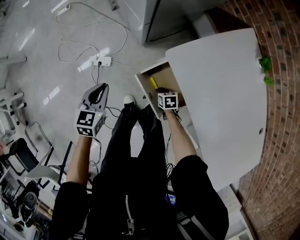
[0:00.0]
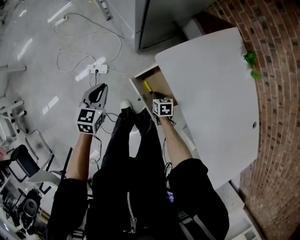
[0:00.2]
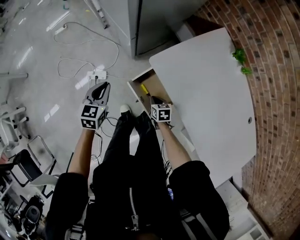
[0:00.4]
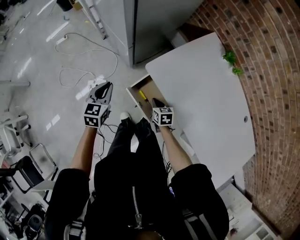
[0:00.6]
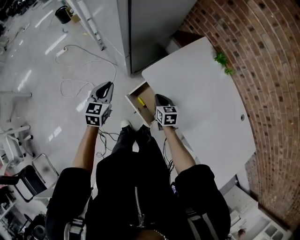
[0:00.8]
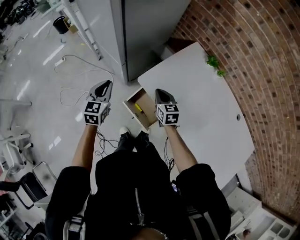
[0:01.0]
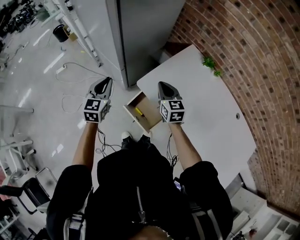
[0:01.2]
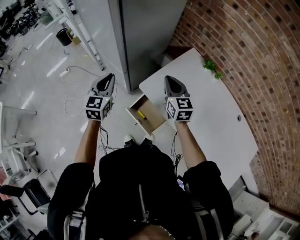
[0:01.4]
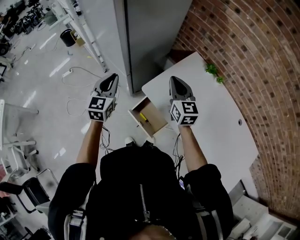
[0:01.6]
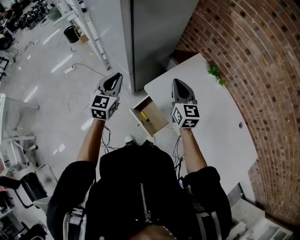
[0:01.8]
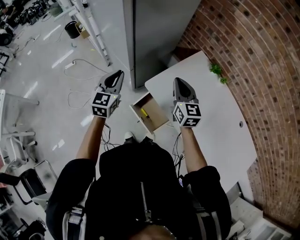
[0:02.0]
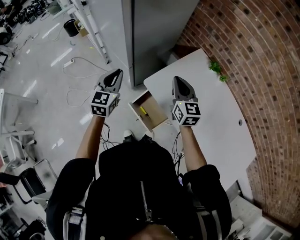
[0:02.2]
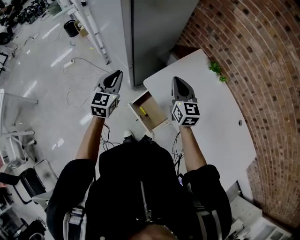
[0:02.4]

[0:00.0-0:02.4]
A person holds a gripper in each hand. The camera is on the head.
0:00.0 to 0:01.2: The left gripper moves upward, about 25 cm, and changes its angle by some 20 degrees, while the right gripper shifts some 50 cm upward, and tilts its fingers roughly 40 degrees upward.
0:01.2 to 0:02.4: The right gripper is displaced upward by some 10 cm.

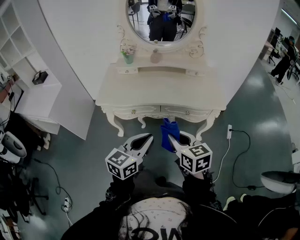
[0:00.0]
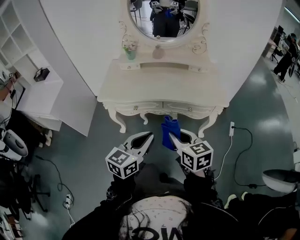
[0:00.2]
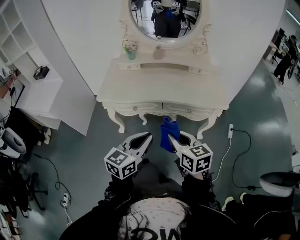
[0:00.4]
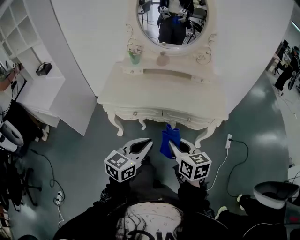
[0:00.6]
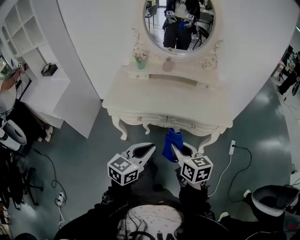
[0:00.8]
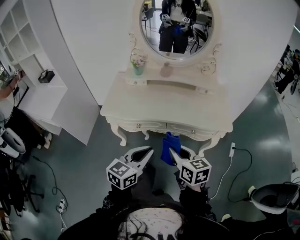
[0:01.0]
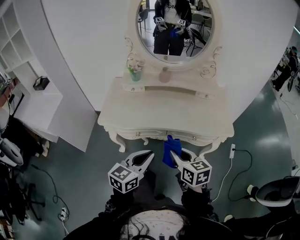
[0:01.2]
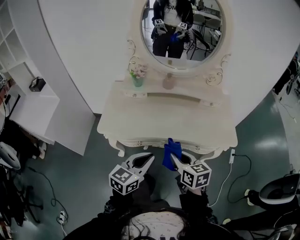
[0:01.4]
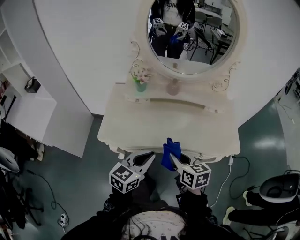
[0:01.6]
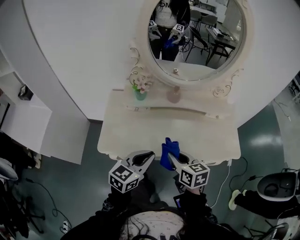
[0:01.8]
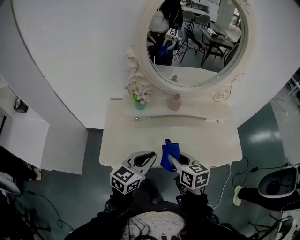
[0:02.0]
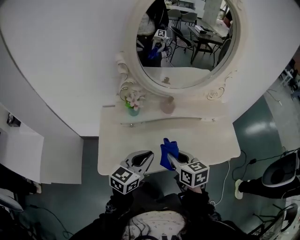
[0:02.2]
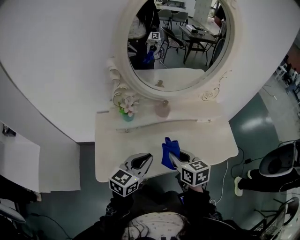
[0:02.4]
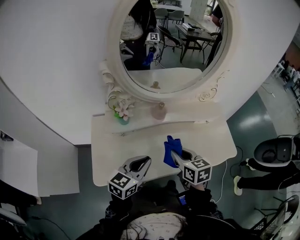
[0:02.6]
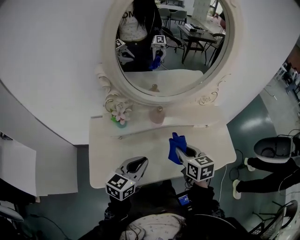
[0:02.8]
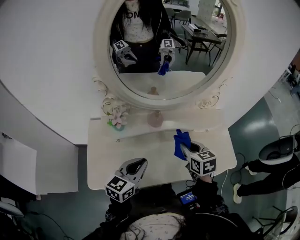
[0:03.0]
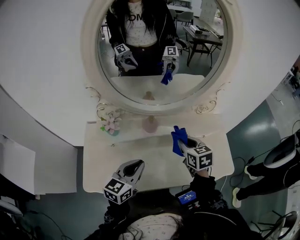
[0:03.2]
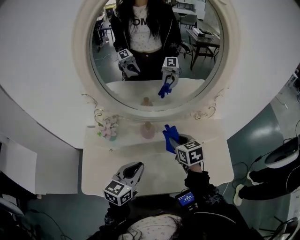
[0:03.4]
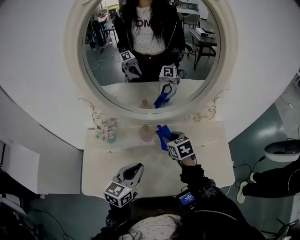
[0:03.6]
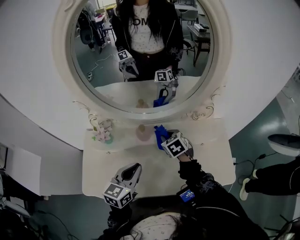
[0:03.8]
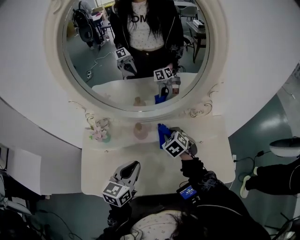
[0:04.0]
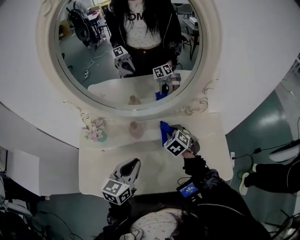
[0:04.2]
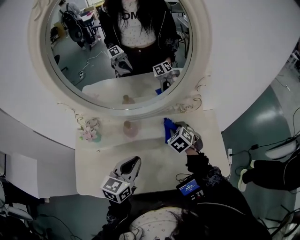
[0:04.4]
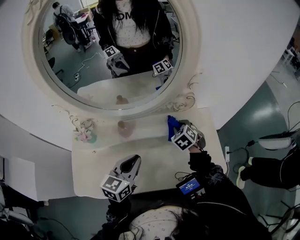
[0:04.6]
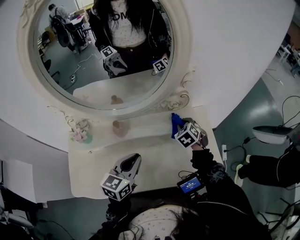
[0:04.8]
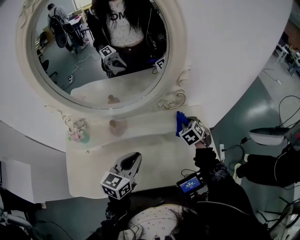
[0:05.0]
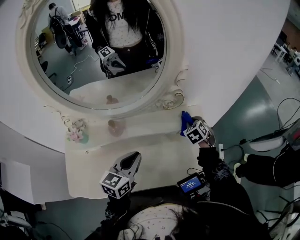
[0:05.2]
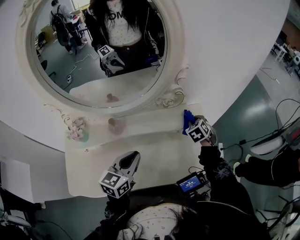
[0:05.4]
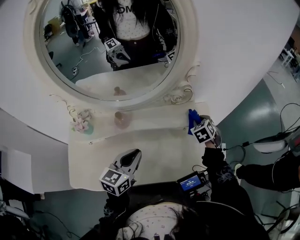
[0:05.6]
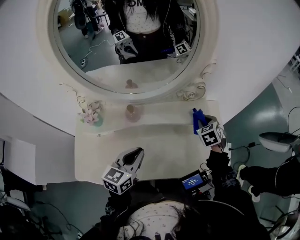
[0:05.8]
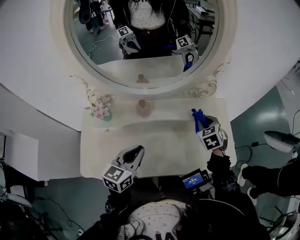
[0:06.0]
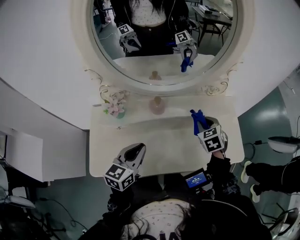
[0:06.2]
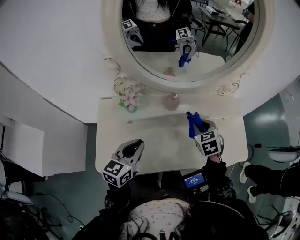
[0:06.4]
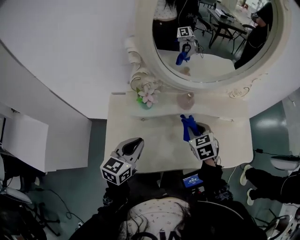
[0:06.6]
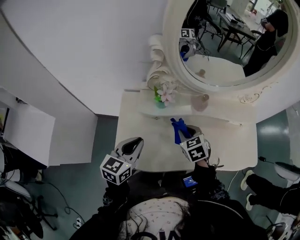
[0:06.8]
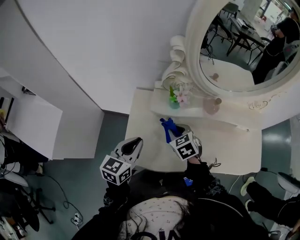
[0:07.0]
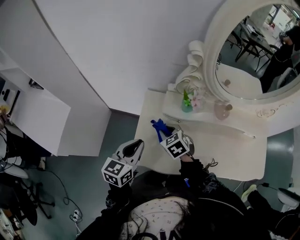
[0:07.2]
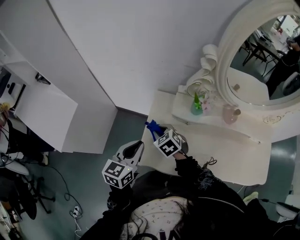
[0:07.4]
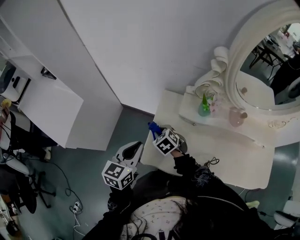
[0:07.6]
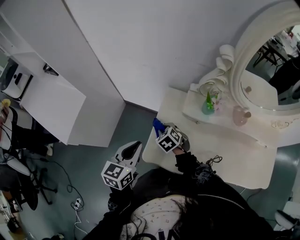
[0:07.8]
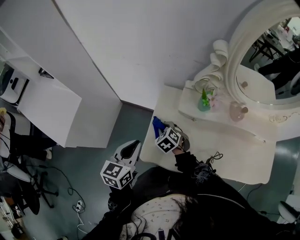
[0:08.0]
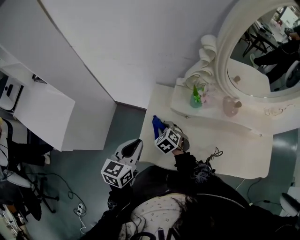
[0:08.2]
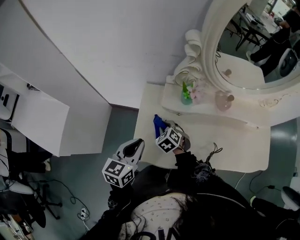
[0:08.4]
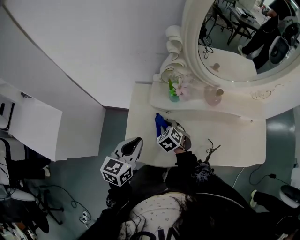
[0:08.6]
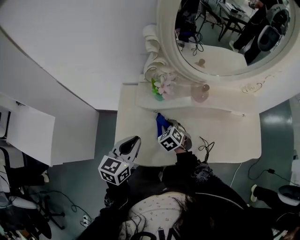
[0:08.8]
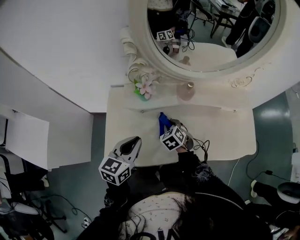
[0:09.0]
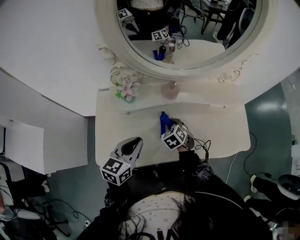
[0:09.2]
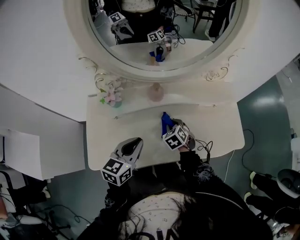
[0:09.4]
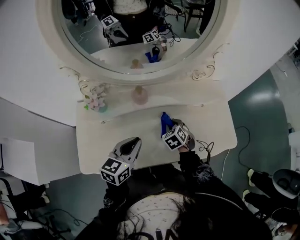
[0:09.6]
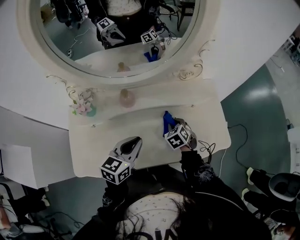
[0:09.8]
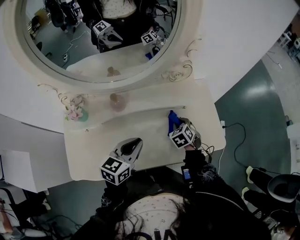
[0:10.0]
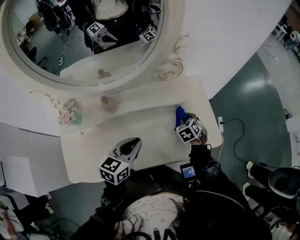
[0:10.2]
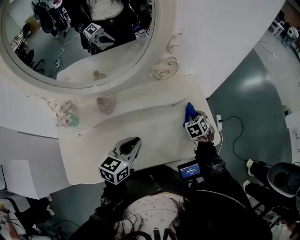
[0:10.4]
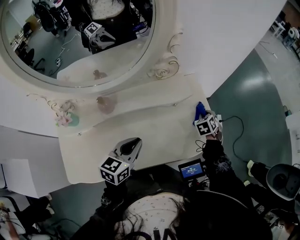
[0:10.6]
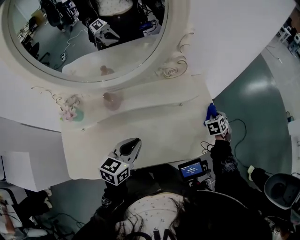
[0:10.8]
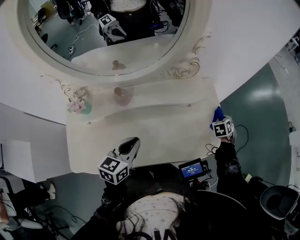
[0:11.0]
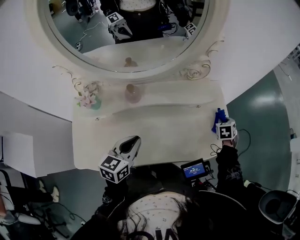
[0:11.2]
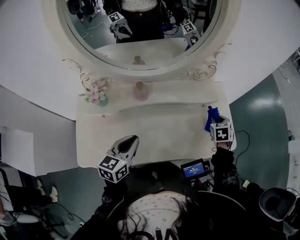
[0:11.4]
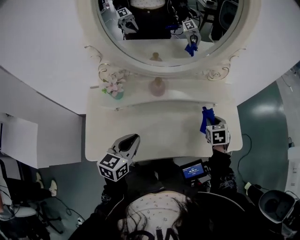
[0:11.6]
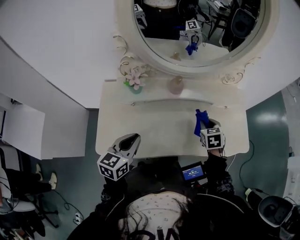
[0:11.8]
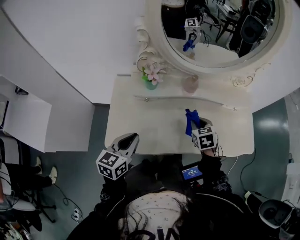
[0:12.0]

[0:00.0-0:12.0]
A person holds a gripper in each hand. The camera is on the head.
0:00.0 to 0:01.6: Both grippers travel together forward and to the left, about 25 cm.
0:01.6 to 0:03.0: Both grippers travel together forward, about 25 cm.
0:03.0 to 0:04.4: The right gripper shifts about 20 cm forward, downward and to the right, and swivels about 40 degrees. The left gripper heads to the right and forward, covering some 15 cm.
0:04.4 to 0:06.0: The right gripper moves to the right, about 10 cm, while the left gripper ends up roughly 5 cm from where it was.
0:06.0 to 0:07.6: The two grippers travel together, some 60 cm. The right gripper changes its angle by some 40 degrees, while the left gripper turns by roughly 30 degrees.
0:07.6 to 0:09.0: The right gripper moves some 30 cm, and turns by about 30 degrees. The left gripper shifts by approximately 20 cm.
0:09.0 to 0:10.4: The left gripper ends up some 35 cm from where it was, and swivels approximately 20 degrees. Meanwhile the right gripper changes place by roughly 50 cm, and swivels some 30 degrees.
0:10.4 to 0:12.0: The right gripper moves roughly 40 cm, and changes its angle by some 20 degrees. Meanwhile the left gripper shifts by some 35 cm, and rotates roughly 20 degrees.

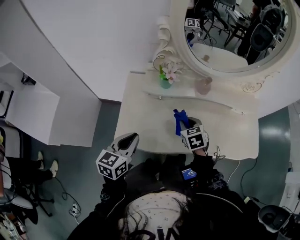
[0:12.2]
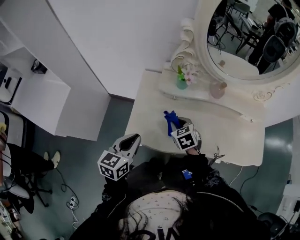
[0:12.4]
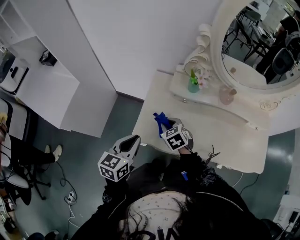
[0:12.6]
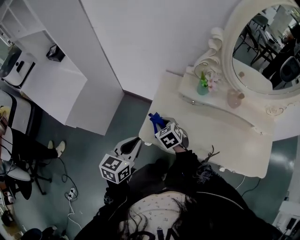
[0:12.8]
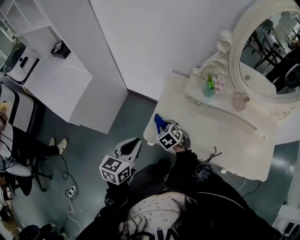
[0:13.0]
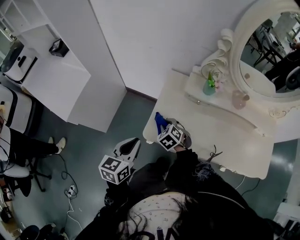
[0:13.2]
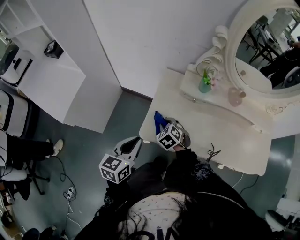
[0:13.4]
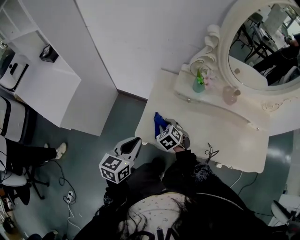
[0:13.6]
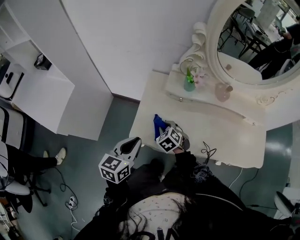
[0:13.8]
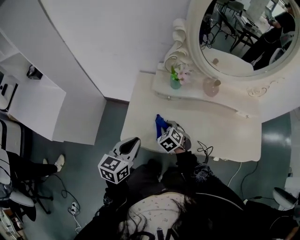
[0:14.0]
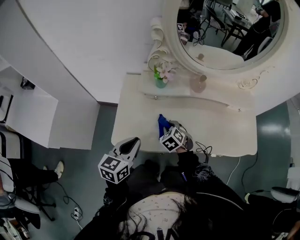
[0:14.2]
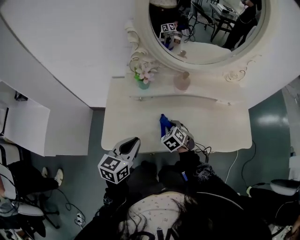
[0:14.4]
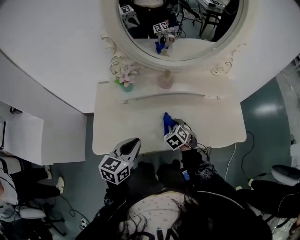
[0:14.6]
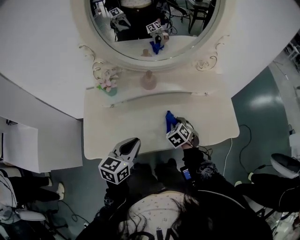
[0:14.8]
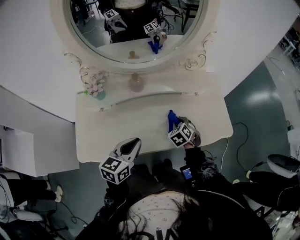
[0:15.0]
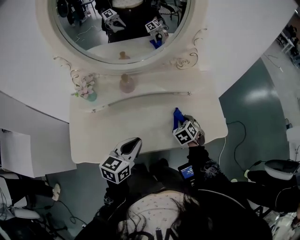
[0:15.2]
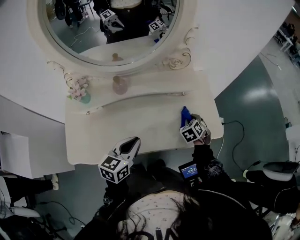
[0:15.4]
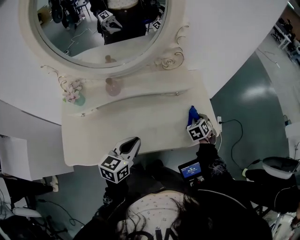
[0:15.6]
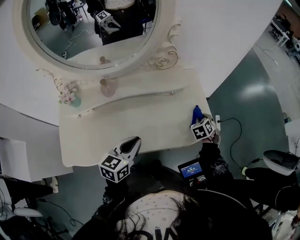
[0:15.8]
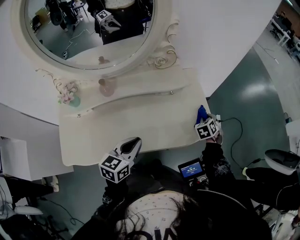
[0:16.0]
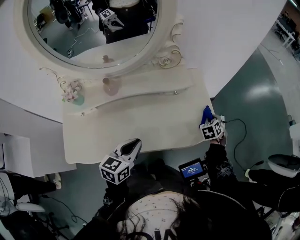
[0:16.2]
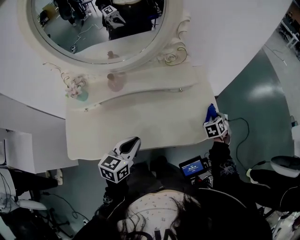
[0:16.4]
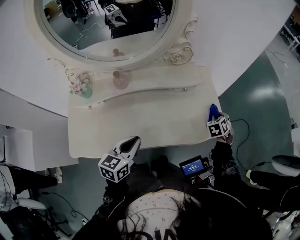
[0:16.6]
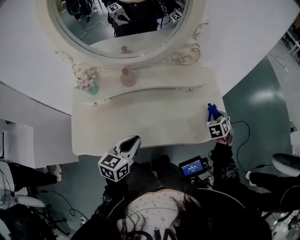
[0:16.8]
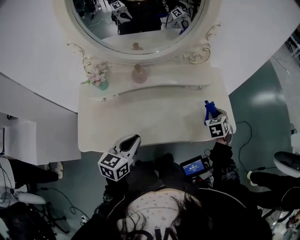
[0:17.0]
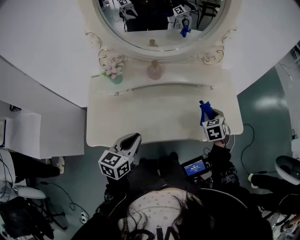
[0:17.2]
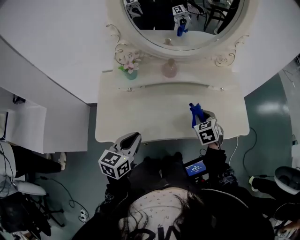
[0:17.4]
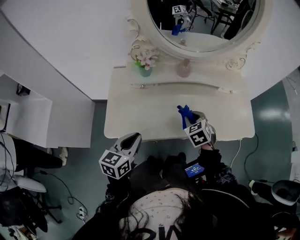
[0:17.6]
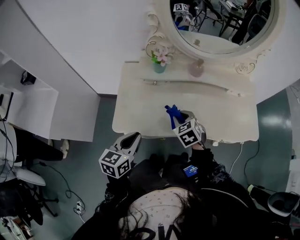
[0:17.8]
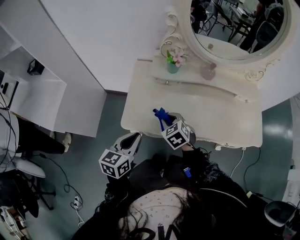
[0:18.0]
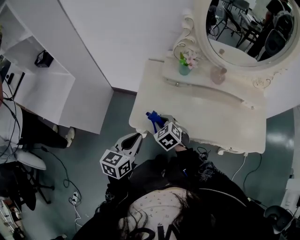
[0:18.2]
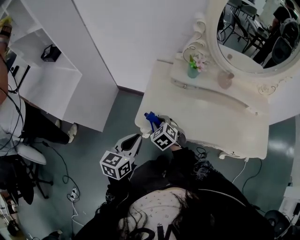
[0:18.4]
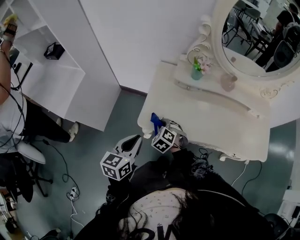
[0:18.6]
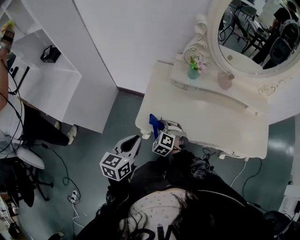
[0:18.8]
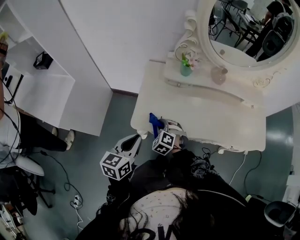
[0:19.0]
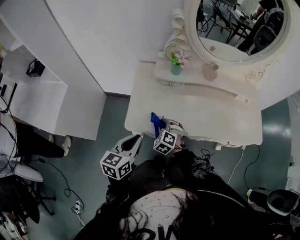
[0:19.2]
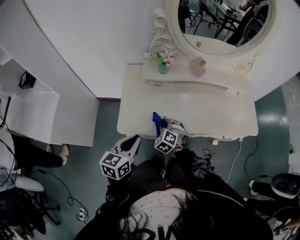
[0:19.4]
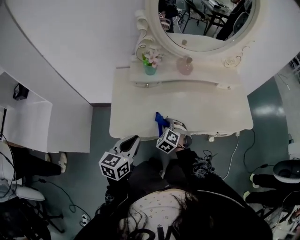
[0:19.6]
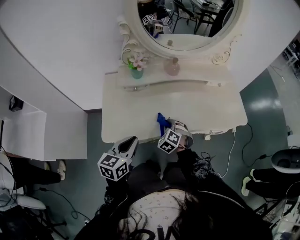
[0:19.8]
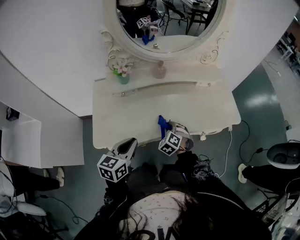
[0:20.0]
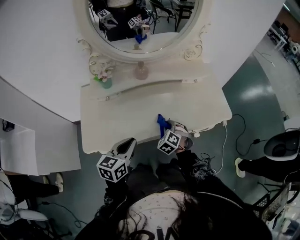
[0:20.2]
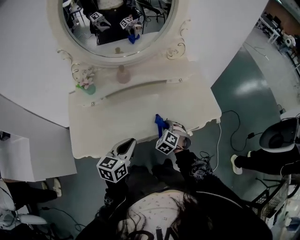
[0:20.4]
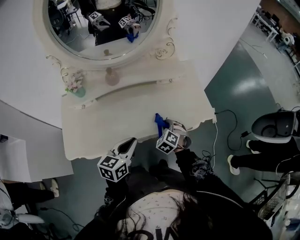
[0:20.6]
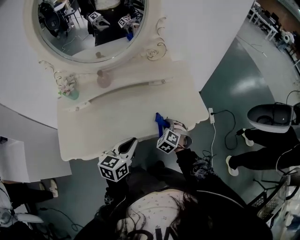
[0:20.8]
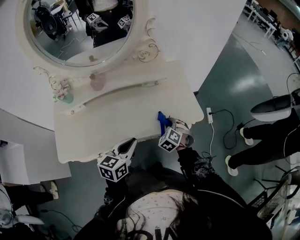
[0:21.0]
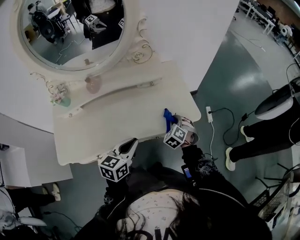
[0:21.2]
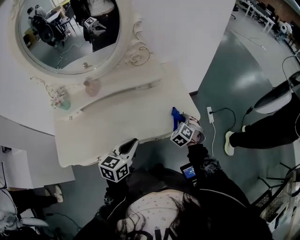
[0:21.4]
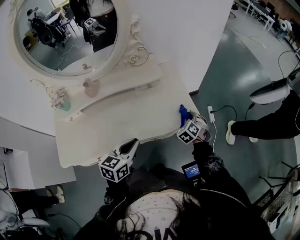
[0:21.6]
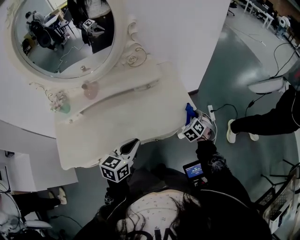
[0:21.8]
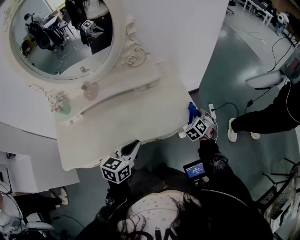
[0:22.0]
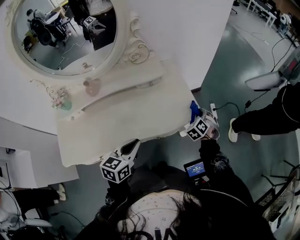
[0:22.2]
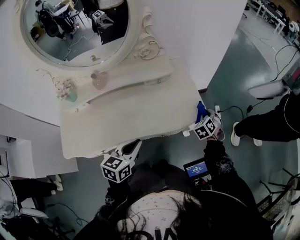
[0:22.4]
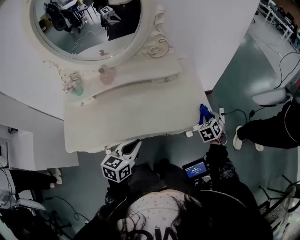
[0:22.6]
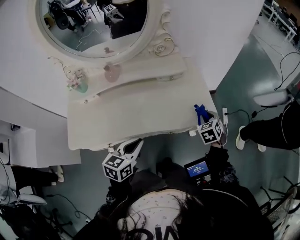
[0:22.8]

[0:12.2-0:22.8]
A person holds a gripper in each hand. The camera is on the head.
0:12.2 to 0:13.8: The left gripper goes about 10 cm to the left. Meanwhile the right gripper travels to the left by about 20 cm, and turns by about 30 degrees.
0:13.8 to 0:15.2: The left gripper ends up about 40 cm from where it was, and changes its angle by roughly 30 degrees. The right gripper shifts by roughly 50 cm, and changes its angle by approximately 40 degrees.
0:15.2 to 0:16.8: The left gripper travels to the right and back again, some 10 cm each way, while the right gripper moves to the right and forward, approximately 20 cm.
0:16.8 to 0:18.2: The right gripper changes place by some 70 cm, and turns by about 50 degrees. Meanwhile the left gripper changes place by some 35 cm, and changes its angle by about 20 degrees.
0:18.2 to 0:19.8: The left gripper moves approximately 10 cm. Meanwhile the right gripper moves approximately 25 cm, and swivels roughly 30 degrees.
0:19.8 to 0:21.2: Both grippers move to the right and forward, about 40 cm.
0:21.2 to 0:22.8: The left gripper moves approximately 5 cm, while the right gripper travels to the right and upward by roughly 10 cm, and swivels some 20 degrees.
